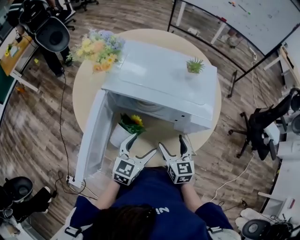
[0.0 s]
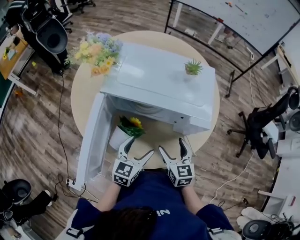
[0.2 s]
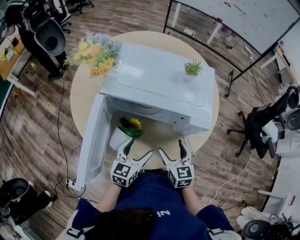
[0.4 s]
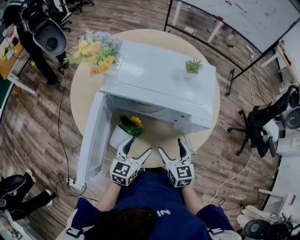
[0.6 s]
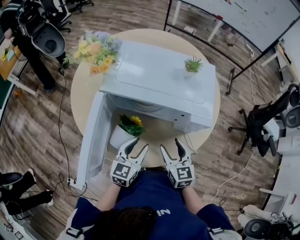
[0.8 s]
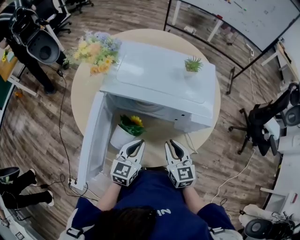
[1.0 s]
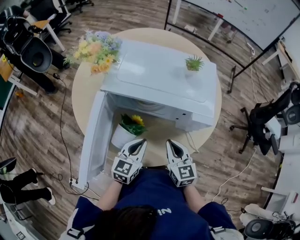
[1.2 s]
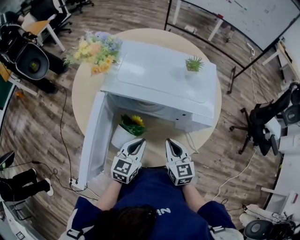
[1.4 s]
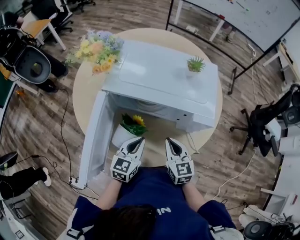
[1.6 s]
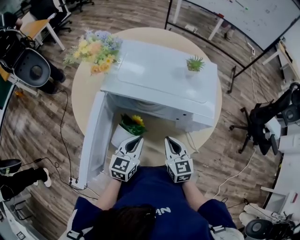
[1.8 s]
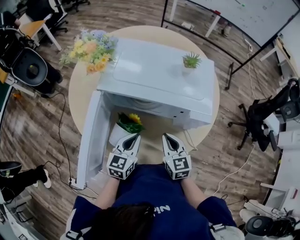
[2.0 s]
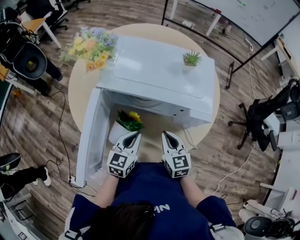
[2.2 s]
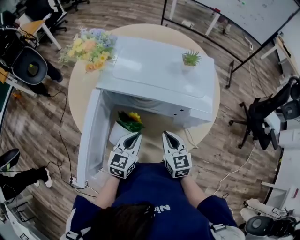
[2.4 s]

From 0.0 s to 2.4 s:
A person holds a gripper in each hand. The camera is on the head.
From 0.0 s to 1.2 s: The left gripper closes up; the right gripper closes up.
From 1.2 s to 2.4 s: There are only small adjustments of the grippers.

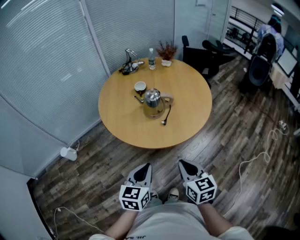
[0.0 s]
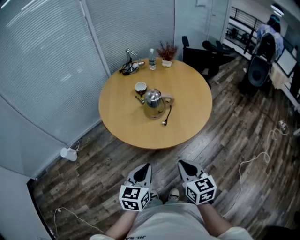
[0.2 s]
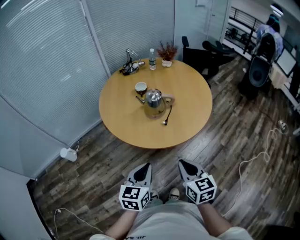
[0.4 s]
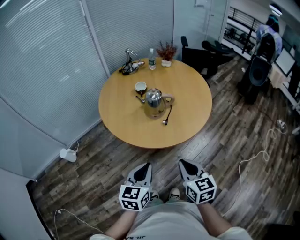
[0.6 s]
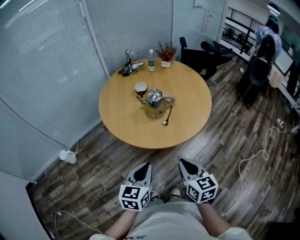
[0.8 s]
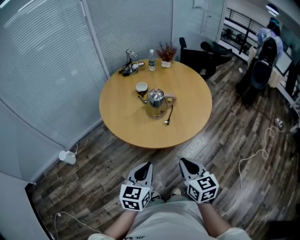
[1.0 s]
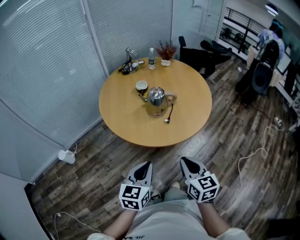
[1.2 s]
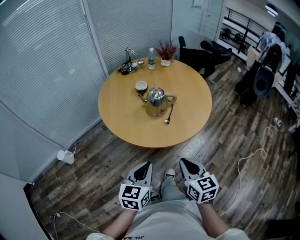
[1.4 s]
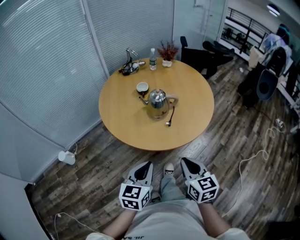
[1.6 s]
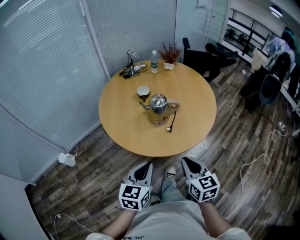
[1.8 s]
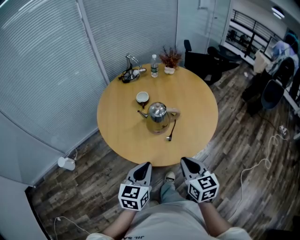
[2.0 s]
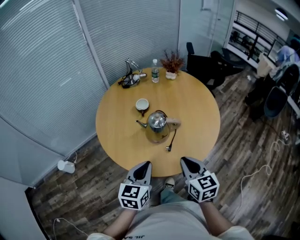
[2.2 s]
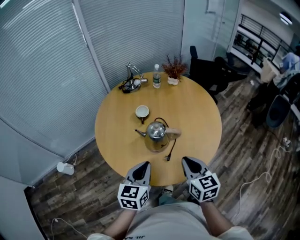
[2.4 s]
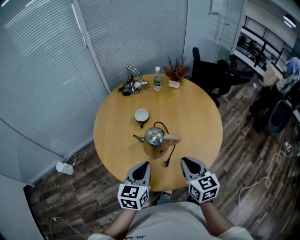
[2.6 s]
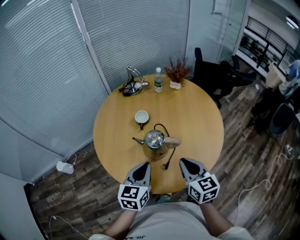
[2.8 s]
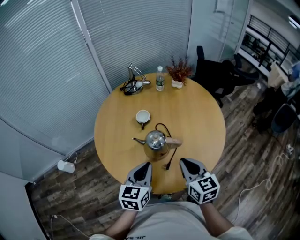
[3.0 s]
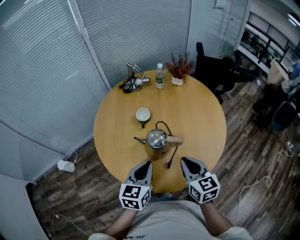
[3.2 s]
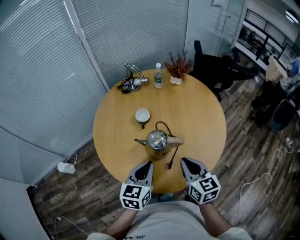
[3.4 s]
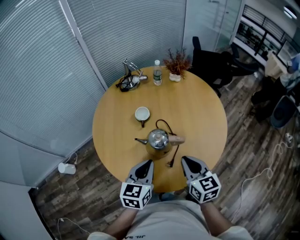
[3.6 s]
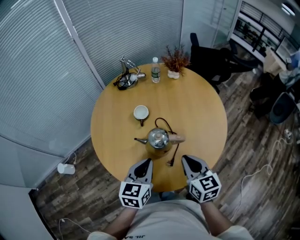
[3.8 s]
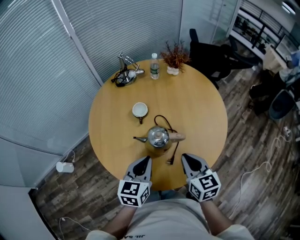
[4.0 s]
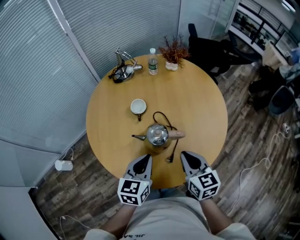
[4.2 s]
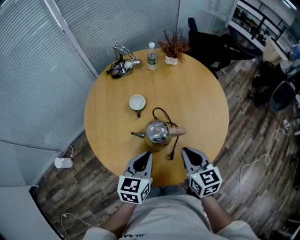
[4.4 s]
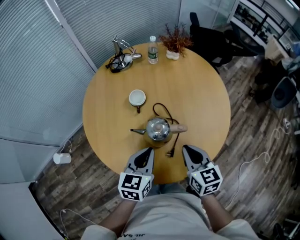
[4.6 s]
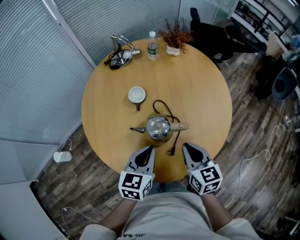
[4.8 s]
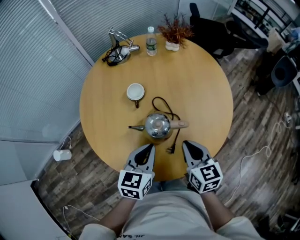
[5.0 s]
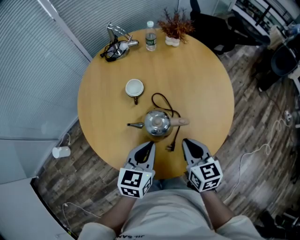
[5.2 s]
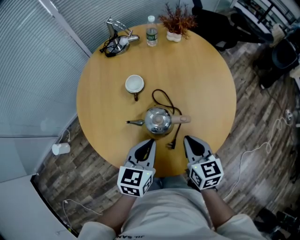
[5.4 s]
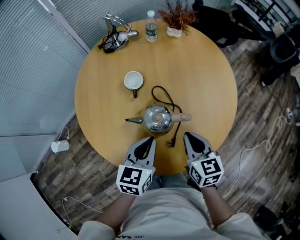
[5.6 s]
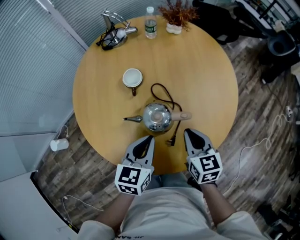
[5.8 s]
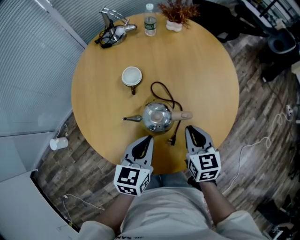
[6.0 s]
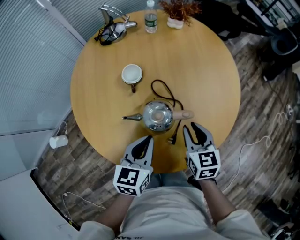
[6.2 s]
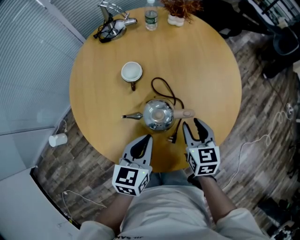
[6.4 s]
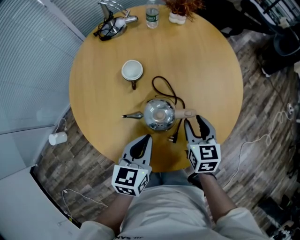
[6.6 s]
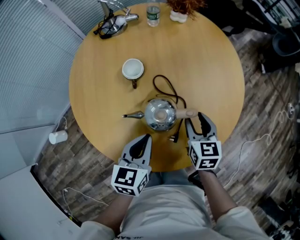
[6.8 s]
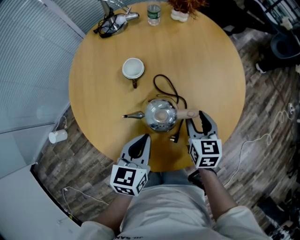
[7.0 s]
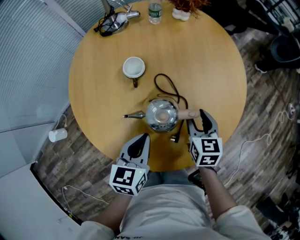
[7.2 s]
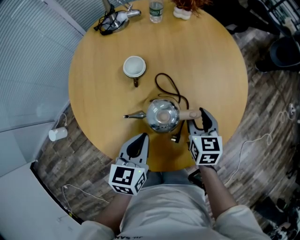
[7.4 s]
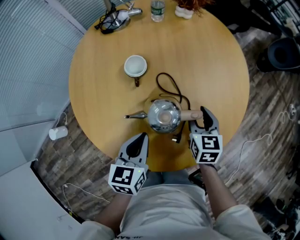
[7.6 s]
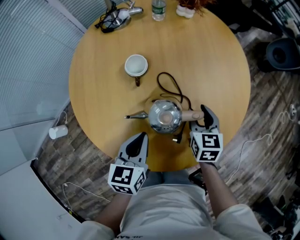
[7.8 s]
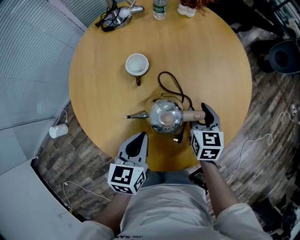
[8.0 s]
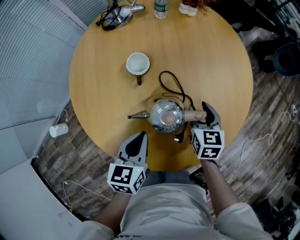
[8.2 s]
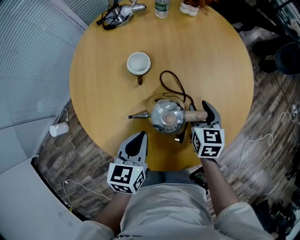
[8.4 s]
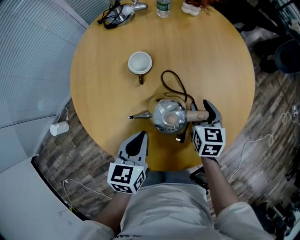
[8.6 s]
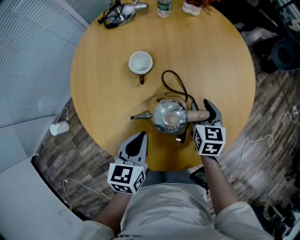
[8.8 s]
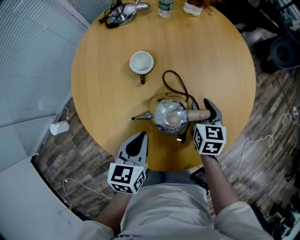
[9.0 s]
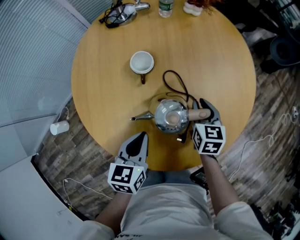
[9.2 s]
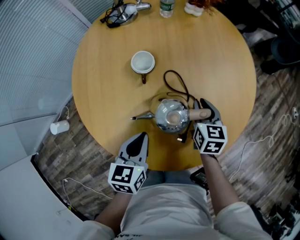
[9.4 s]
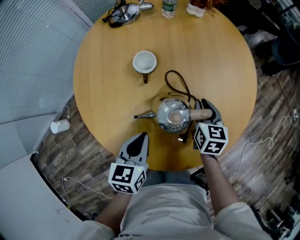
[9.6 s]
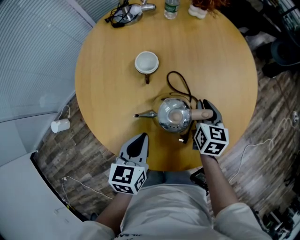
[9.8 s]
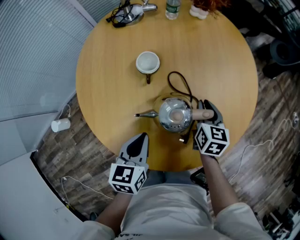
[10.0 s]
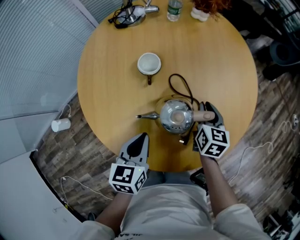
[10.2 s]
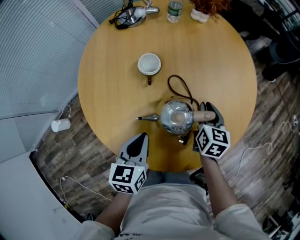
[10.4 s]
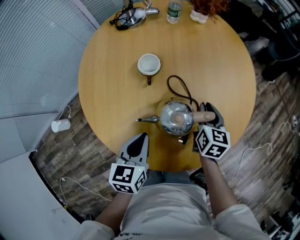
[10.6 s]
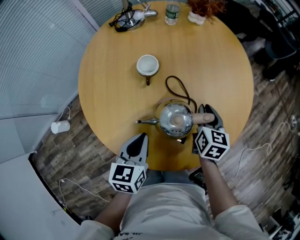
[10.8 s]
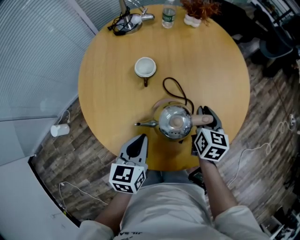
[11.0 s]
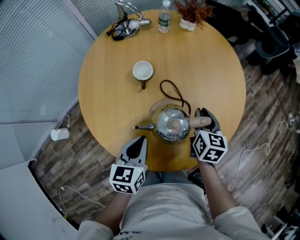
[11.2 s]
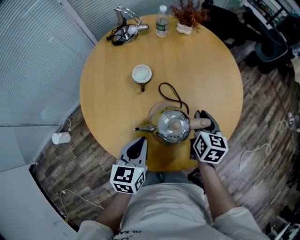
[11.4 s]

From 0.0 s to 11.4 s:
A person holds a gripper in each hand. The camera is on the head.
From 0.0 s to 1.4 s: There are only small adjustments of the grippers.
From 1.4 s to 2.8 s: Both grippers move forward, about 30 cm.
From 2.8 s to 4.2 s: The left gripper ends up about 5 cm from where it was.
From 4.2 s to 5.6 s: The right gripper is displaced downward by roughly 5 cm. Meanwhile the left gripper shifts by some 5 cm.
From 5.6 s to 7.2 s: The left gripper changes place by approximately 5 cm, while the right gripper heads downward and forward, covering roughly 10 cm, and opens up.
From 7.2 s to 8.6 s: The grippers stay close to where they were, moving slightly.
From 8.6 s to 10.0 s: The right gripper closes up.
From 10.0 s to 11.4 s: The right gripper travels upward by about 5 cm.

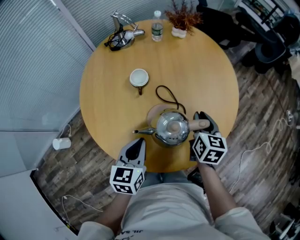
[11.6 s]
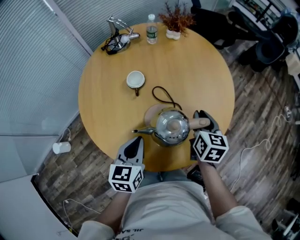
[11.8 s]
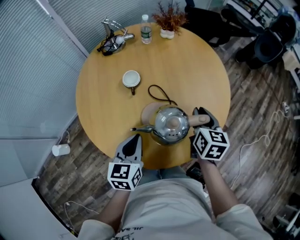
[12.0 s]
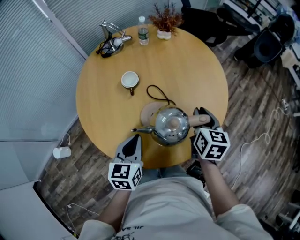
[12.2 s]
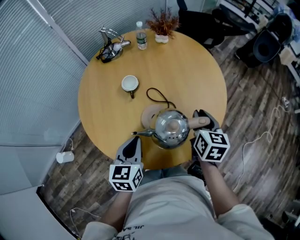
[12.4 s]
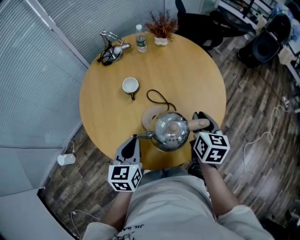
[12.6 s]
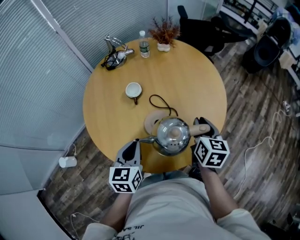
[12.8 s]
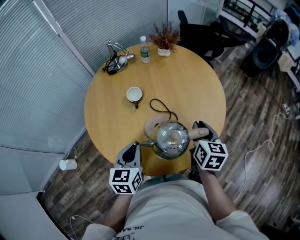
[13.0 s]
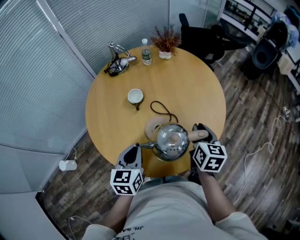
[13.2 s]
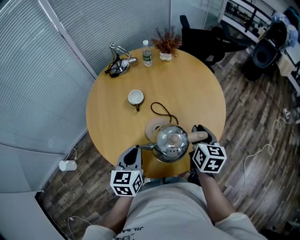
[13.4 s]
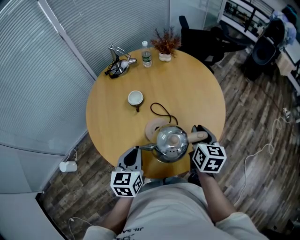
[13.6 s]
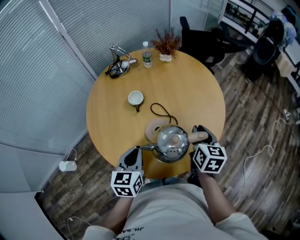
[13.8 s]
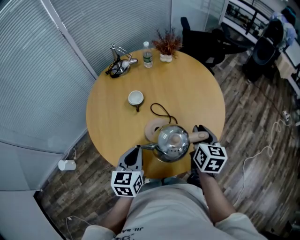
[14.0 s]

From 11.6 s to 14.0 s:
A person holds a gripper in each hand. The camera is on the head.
From 11.6 s to 12.8 s: The right gripper heads upward, covering about 5 cm.
From 12.8 s to 14.0 s: The grippers move only a little.

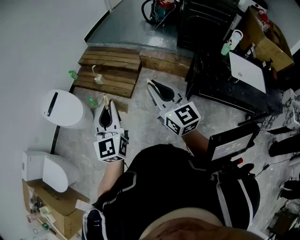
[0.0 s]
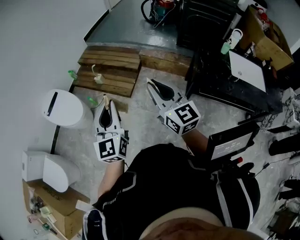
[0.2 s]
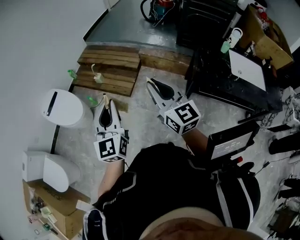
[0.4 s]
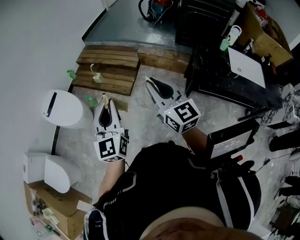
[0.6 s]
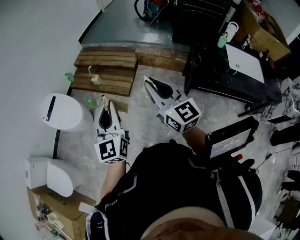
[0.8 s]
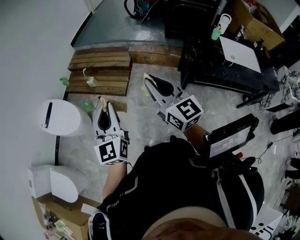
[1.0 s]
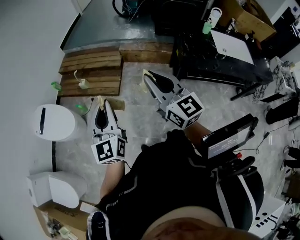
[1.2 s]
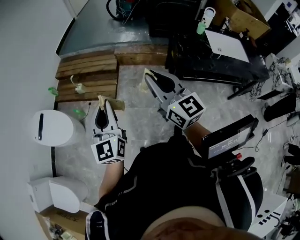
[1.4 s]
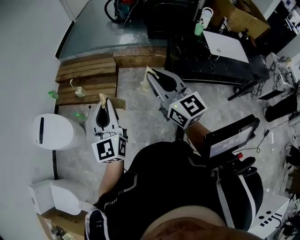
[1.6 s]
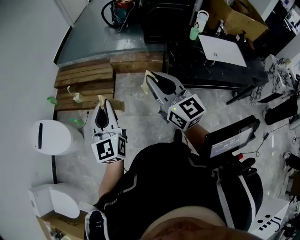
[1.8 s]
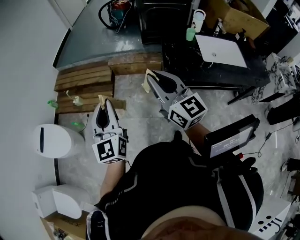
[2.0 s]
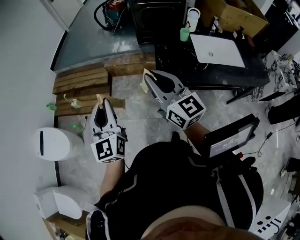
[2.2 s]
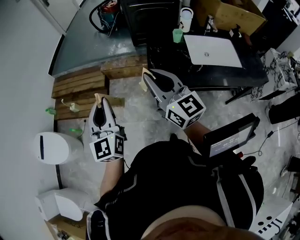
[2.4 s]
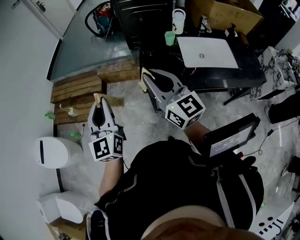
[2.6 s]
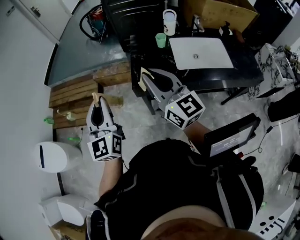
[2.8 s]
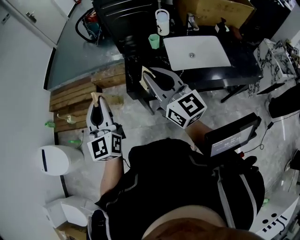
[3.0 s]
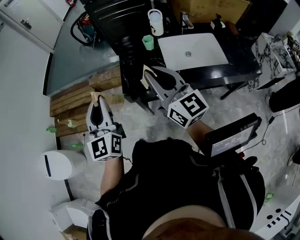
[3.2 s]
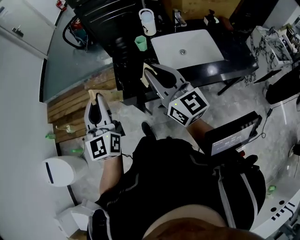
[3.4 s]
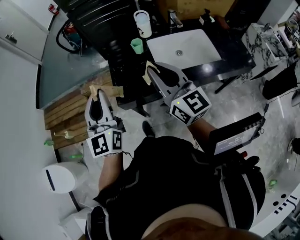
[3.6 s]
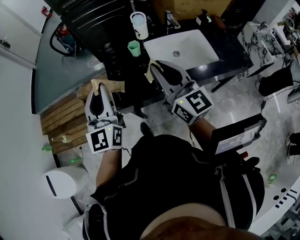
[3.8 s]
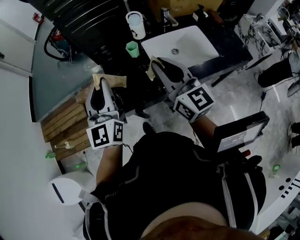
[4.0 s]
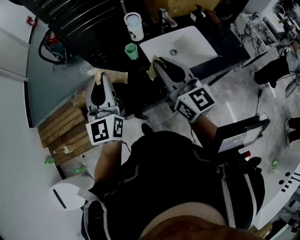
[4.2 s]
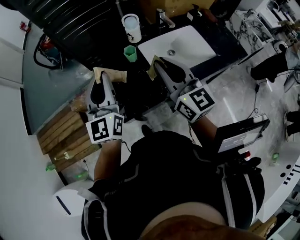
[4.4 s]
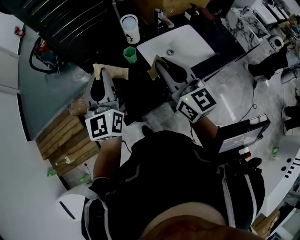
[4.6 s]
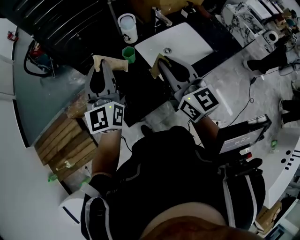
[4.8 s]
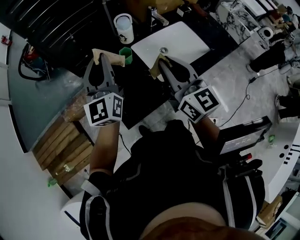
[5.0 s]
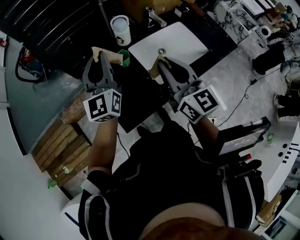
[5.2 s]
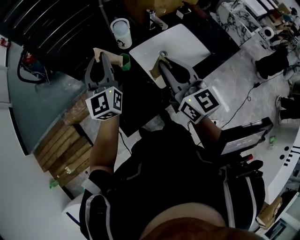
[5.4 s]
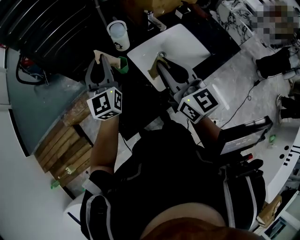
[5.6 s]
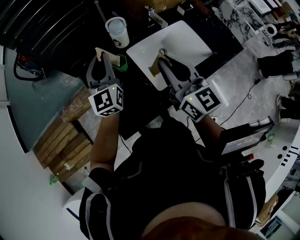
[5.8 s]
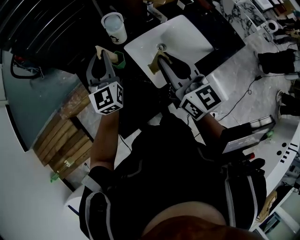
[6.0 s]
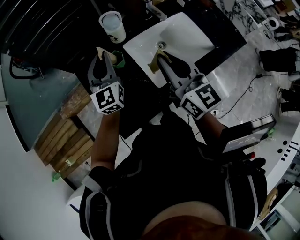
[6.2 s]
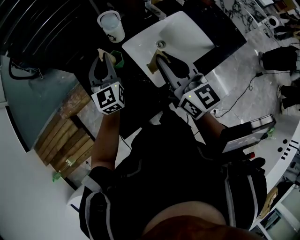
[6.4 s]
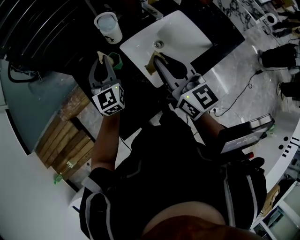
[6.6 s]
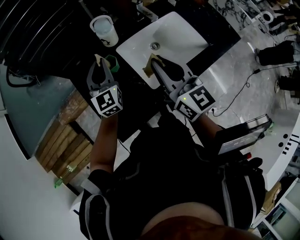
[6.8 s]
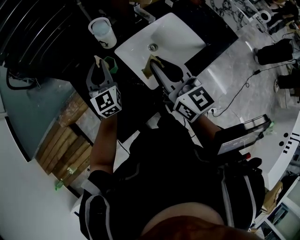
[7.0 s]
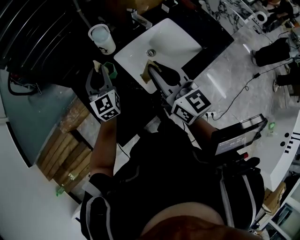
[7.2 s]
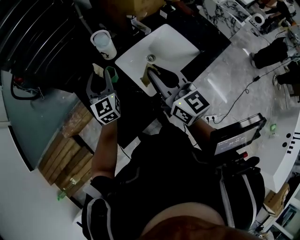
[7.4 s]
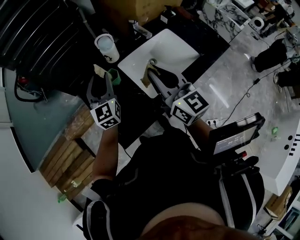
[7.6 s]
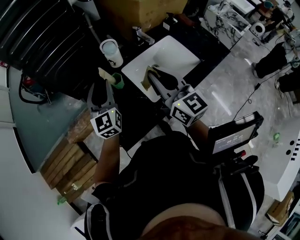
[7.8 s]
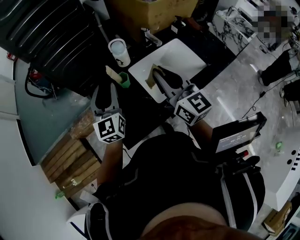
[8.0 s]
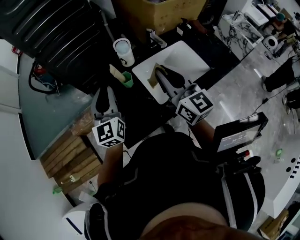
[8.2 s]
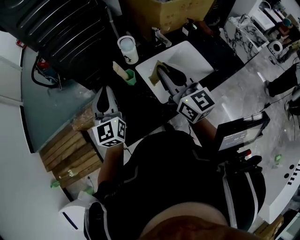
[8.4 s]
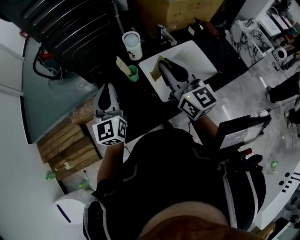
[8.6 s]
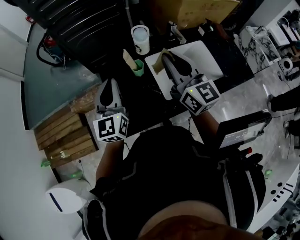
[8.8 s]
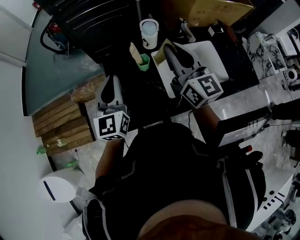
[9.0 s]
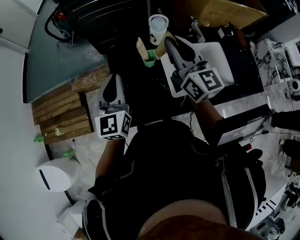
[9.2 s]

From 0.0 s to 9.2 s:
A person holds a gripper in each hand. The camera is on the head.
From 0.0 s to 1.6 s: The two grippers go about 5 cm to the right.
From 1.6 s to 3.0 s: Both grippers move to the right, approximately 35 cm.
From 3.0 s to 4.6 s: The left gripper shifts by some 30 cm, and changes its angle by roughly 30 degrees, while the right gripper moves about 20 cm, and swivels approximately 30 degrees.
From 4.6 s to 6.2 s: The right gripper is displaced forward, to the right and downward by some 10 cm, while the left gripper moves forward and downward, about 20 cm.
From 6.2 s to 7.6 s: The left gripper opens up.
From 7.6 s to 9.2 s: The right gripper goes about 10 cm forward and to the left, while the left gripper goes some 15 cm backward and to the left, and closes up.
